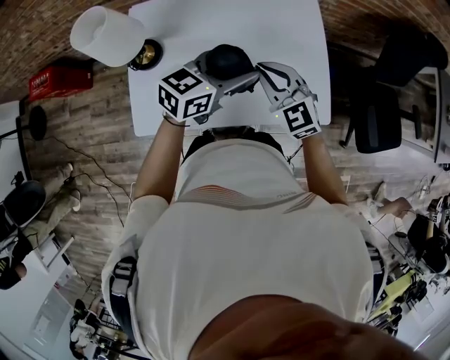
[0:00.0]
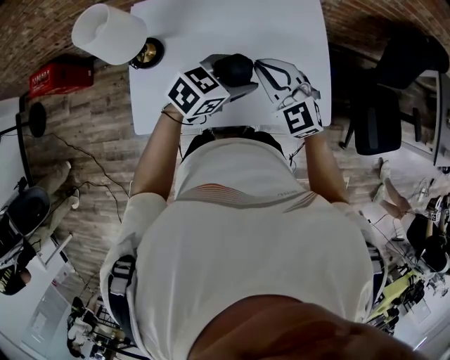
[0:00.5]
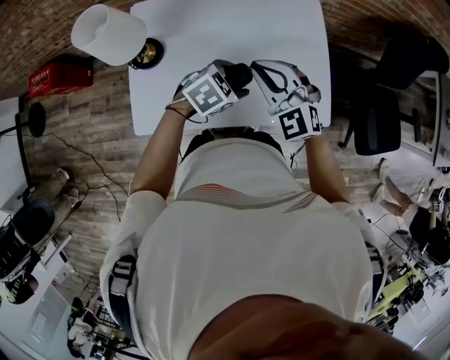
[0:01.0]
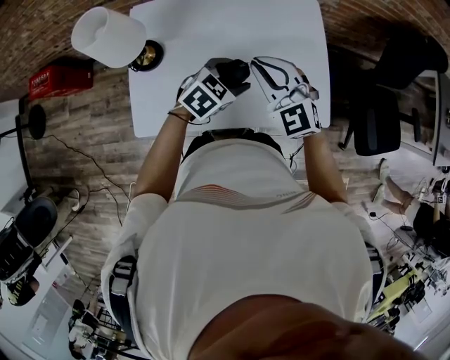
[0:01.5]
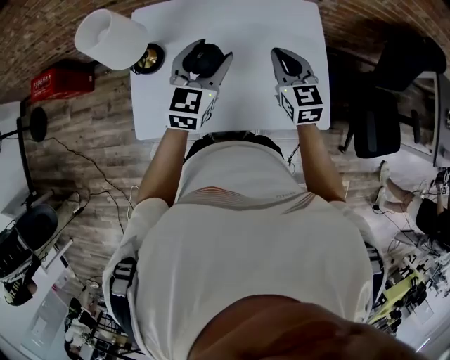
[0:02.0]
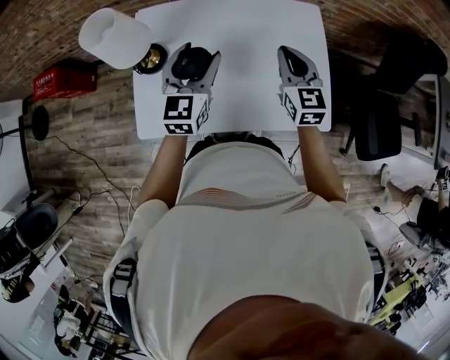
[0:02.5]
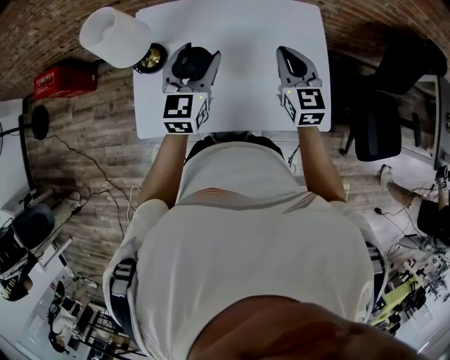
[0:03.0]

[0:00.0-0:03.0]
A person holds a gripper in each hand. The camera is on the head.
0:00.0 to 0:01.5: The left gripper goes roughly 10 cm downward, and changes its angle by roughly 30 degrees.
0:01.5 to 0:03.0: The left gripper heads to the left and upward, covering about 15 cm, and points its fingers about 30 degrees further upward; the right gripper heads to the right and forward, covering roughly 10 cm, and turns by about 30 degrees.

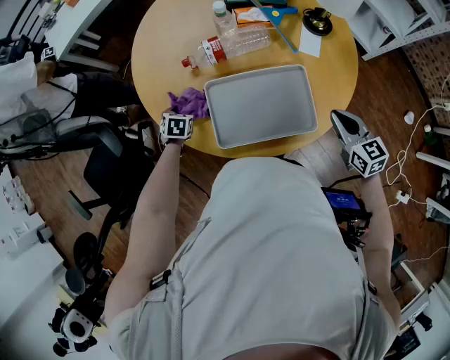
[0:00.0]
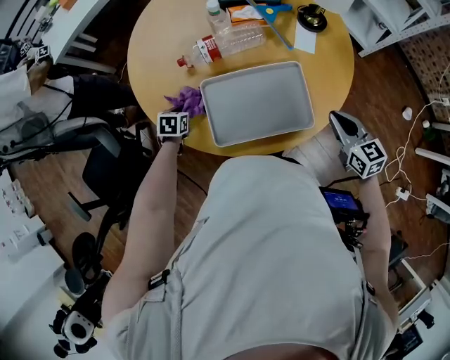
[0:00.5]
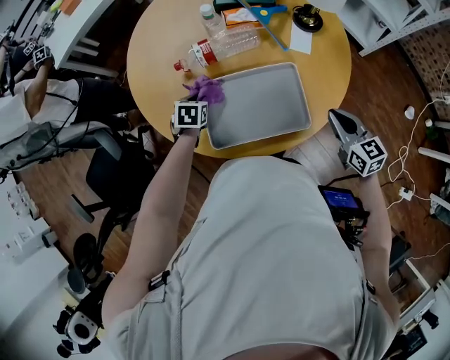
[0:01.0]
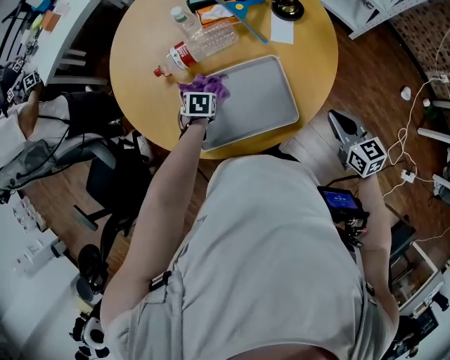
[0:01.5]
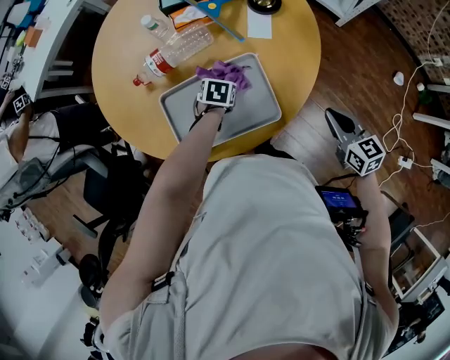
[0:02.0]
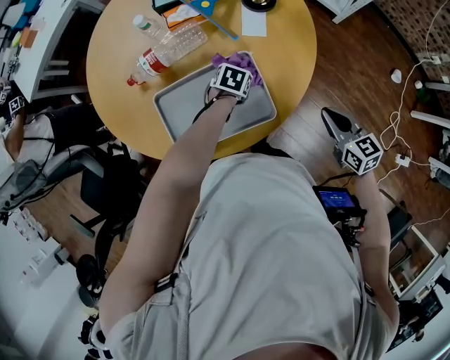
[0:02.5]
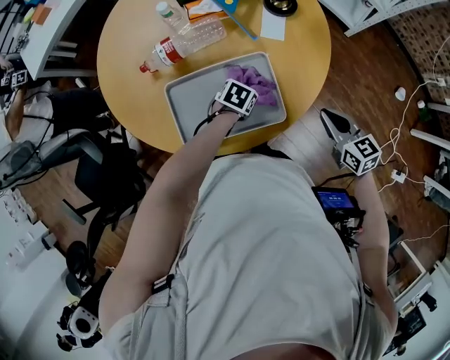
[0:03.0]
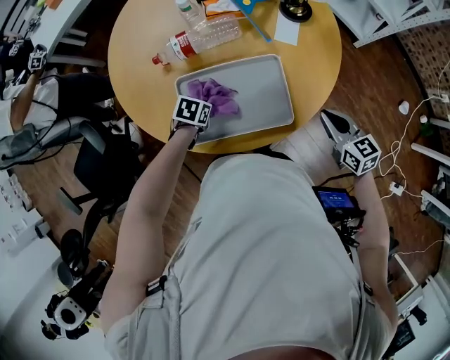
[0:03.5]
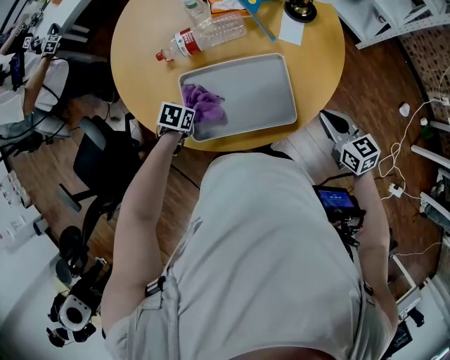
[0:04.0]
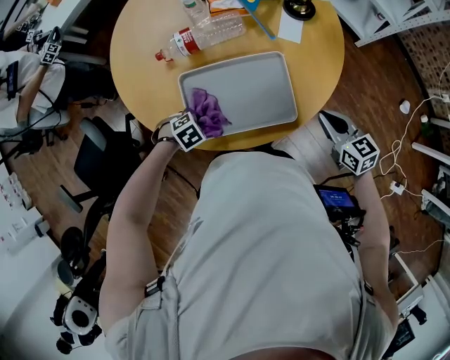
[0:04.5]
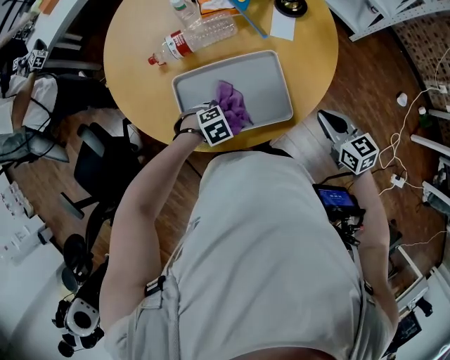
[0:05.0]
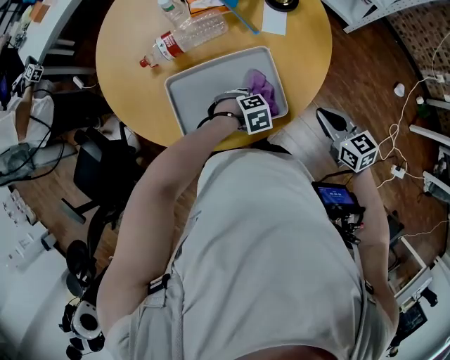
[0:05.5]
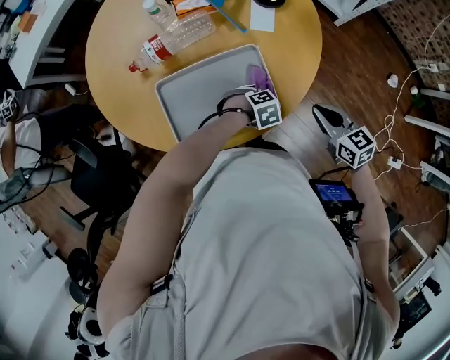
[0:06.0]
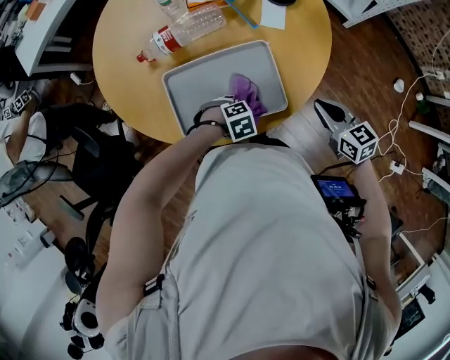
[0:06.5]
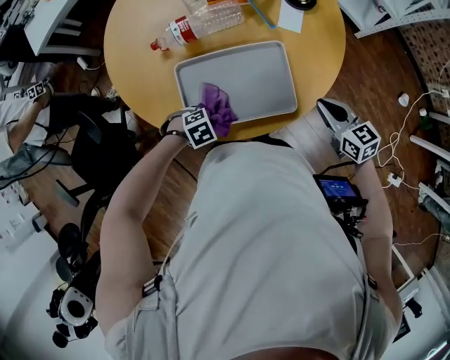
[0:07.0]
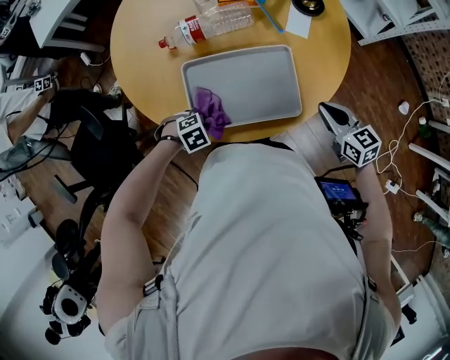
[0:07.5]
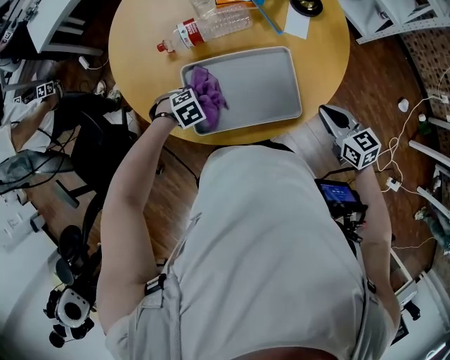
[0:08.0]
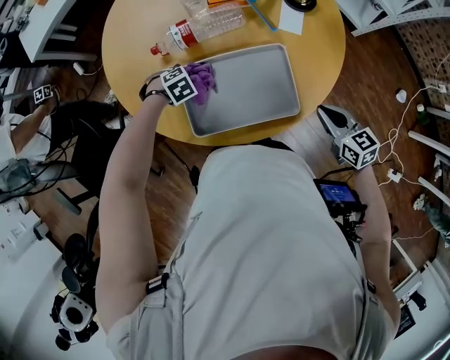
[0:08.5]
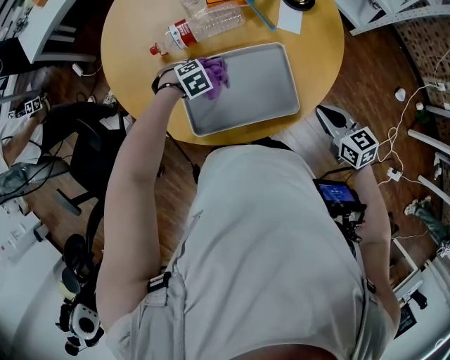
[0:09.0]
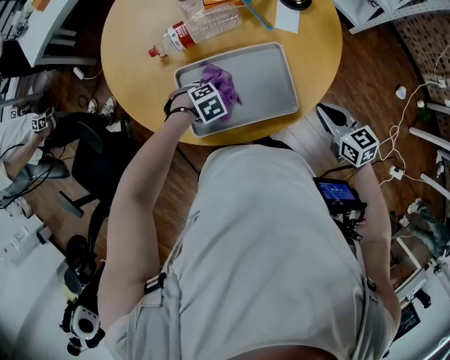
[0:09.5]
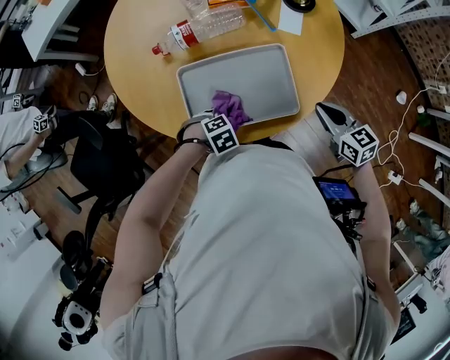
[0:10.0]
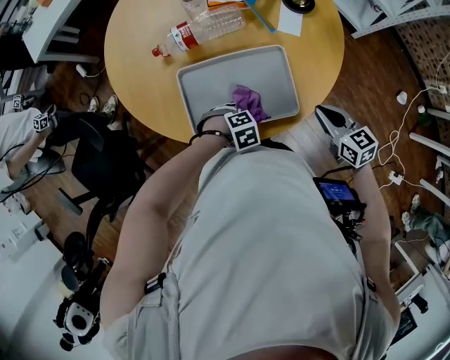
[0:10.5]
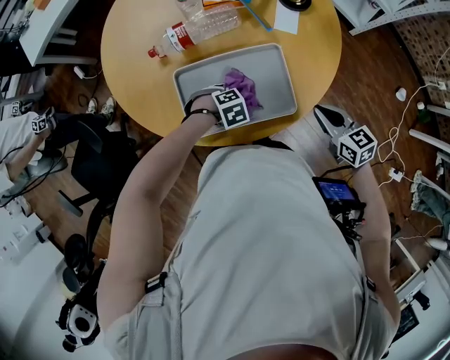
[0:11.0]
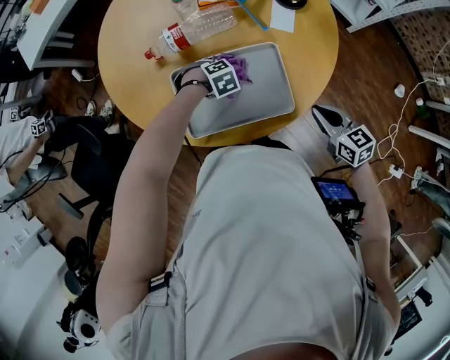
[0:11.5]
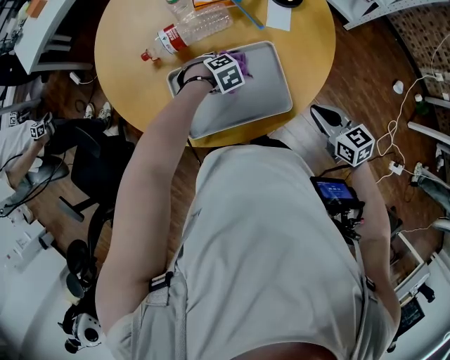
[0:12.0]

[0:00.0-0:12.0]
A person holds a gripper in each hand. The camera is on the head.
0:00.0 to 0:02.0: The right gripper changes place by roughly 15 cm.
0:02.0 to 0:04.0: The right gripper shifts by about 10 cm.
0:06.0 to 0:08.0: The right gripper ends up some 5 cm from where it was.

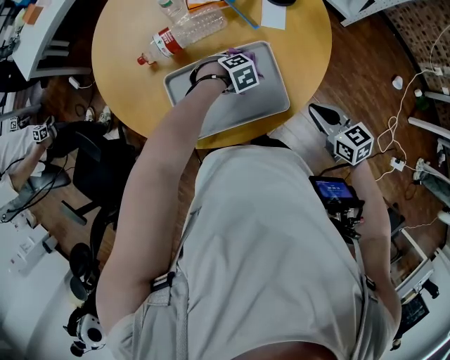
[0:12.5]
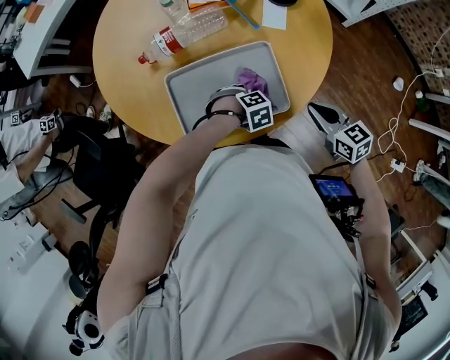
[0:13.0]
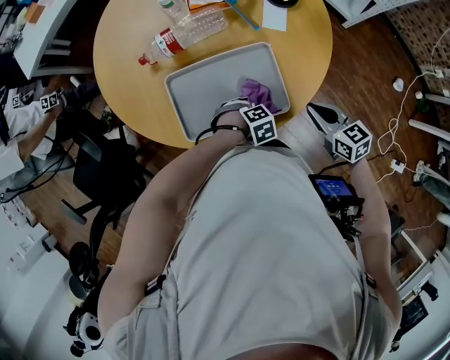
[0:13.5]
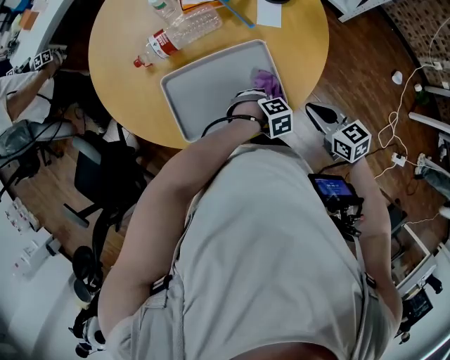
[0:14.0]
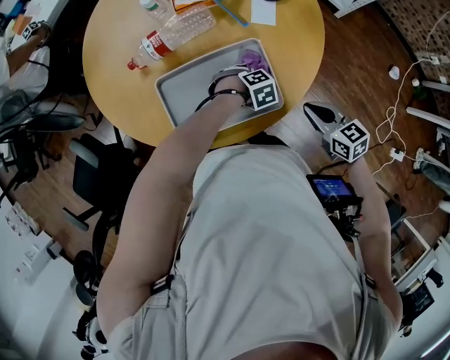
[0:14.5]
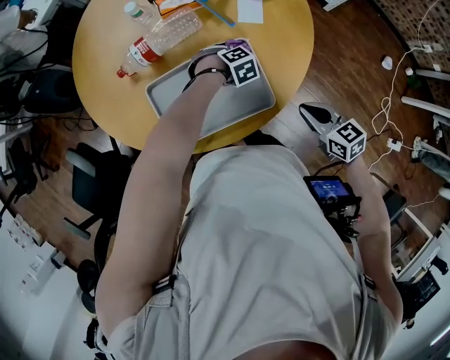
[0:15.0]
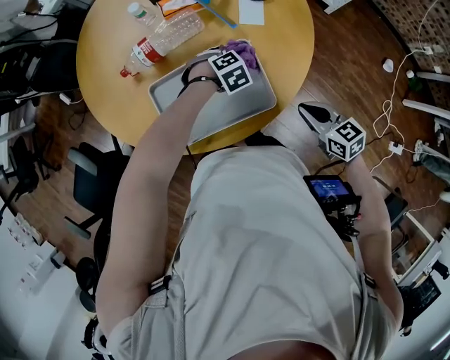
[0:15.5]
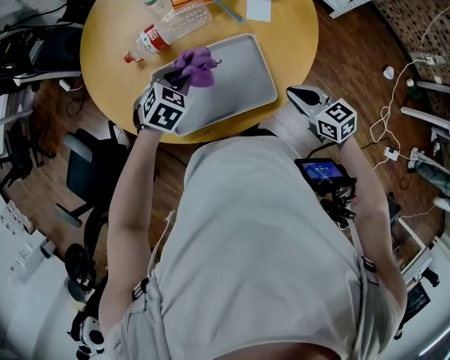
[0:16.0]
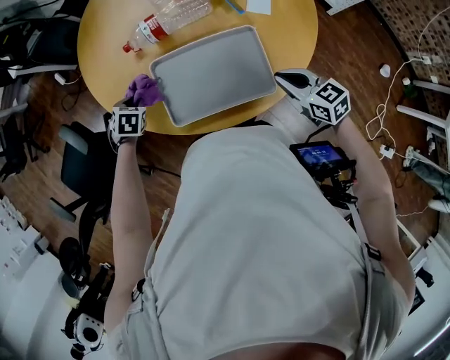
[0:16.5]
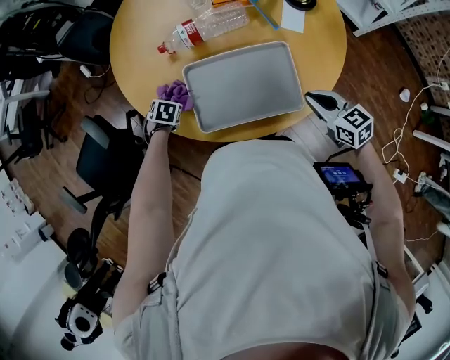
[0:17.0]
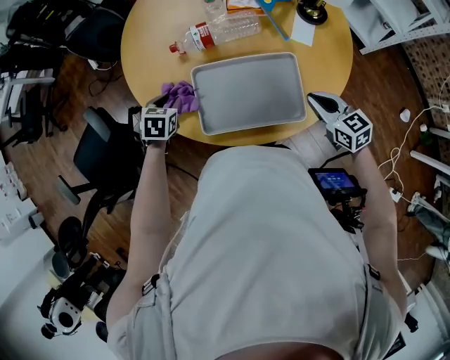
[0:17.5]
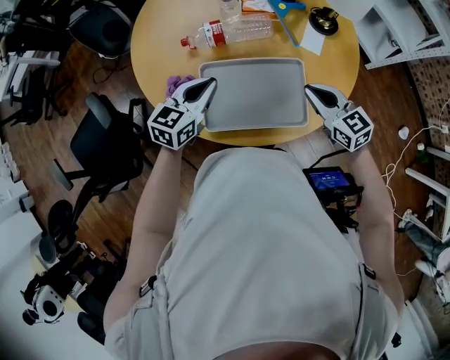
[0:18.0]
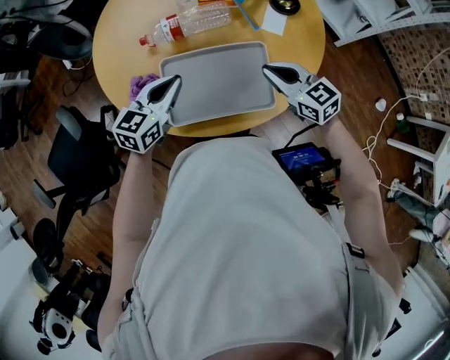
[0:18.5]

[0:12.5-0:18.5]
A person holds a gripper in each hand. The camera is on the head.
0:14.5 to 0:16.5: The right gripper changes place by approximately 10 cm.
0:16.5 to 0:18.5: The right gripper moves some 10 cm.

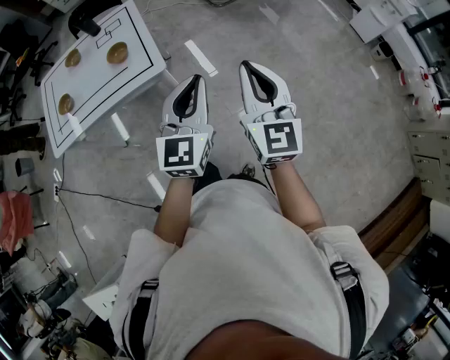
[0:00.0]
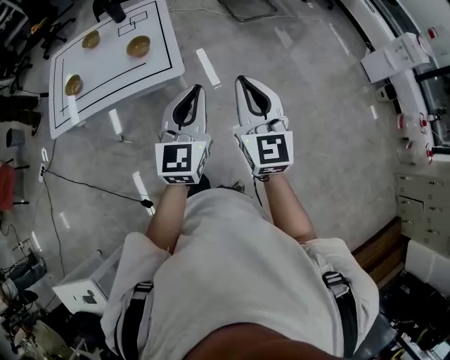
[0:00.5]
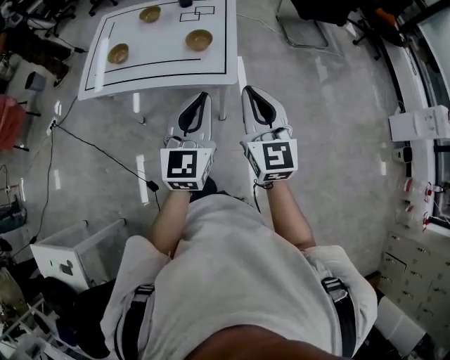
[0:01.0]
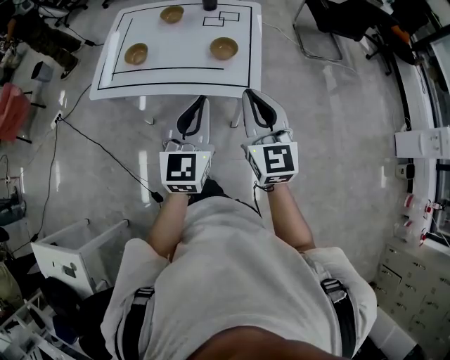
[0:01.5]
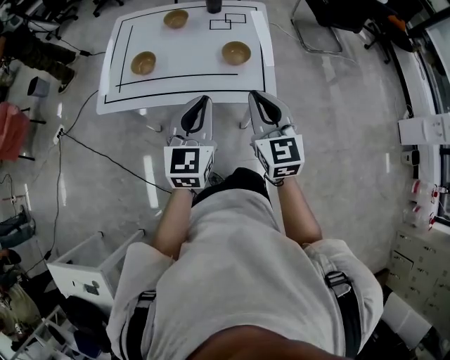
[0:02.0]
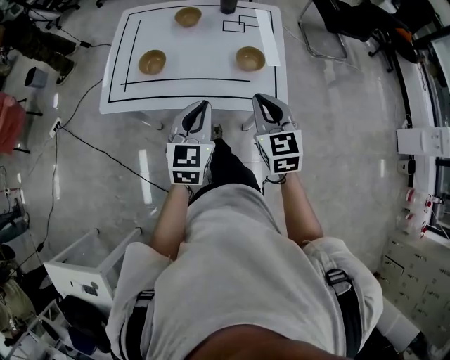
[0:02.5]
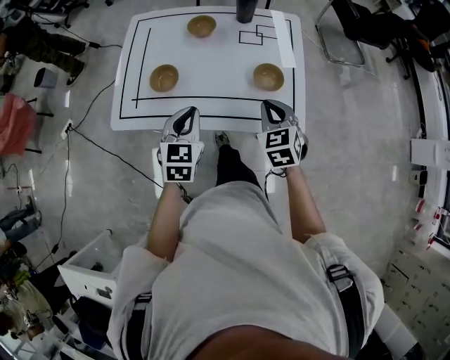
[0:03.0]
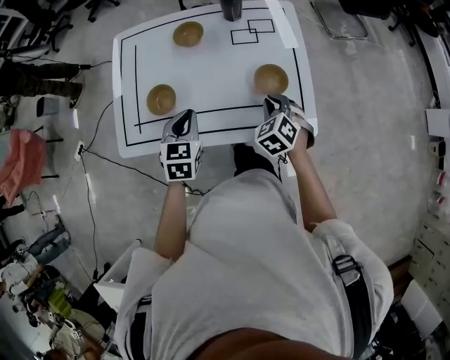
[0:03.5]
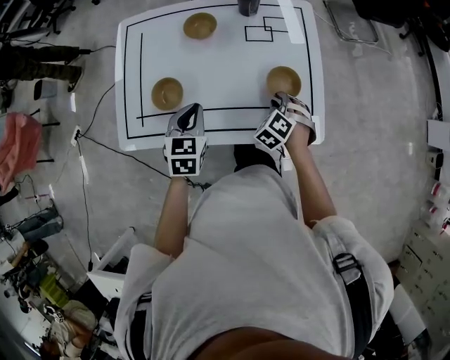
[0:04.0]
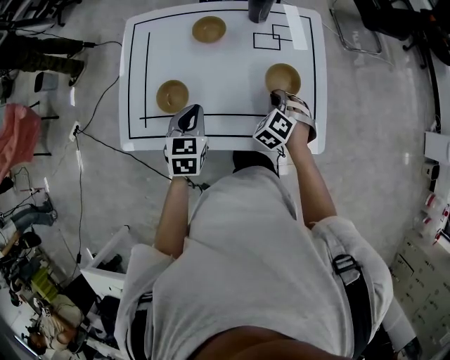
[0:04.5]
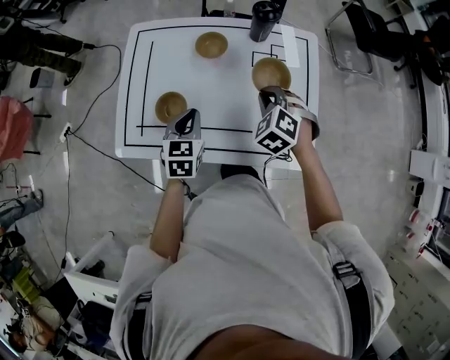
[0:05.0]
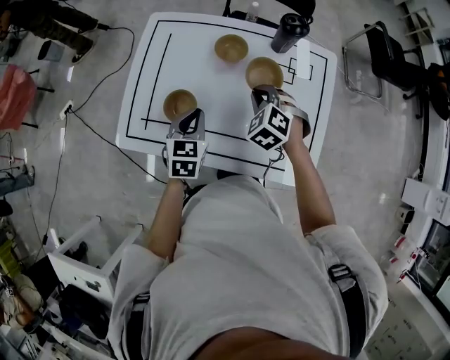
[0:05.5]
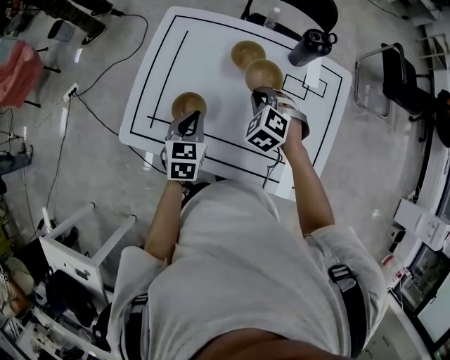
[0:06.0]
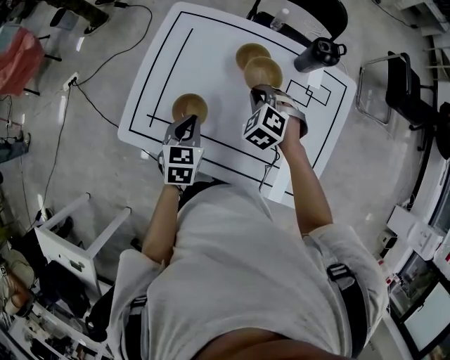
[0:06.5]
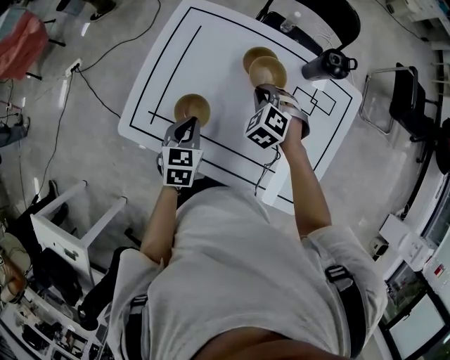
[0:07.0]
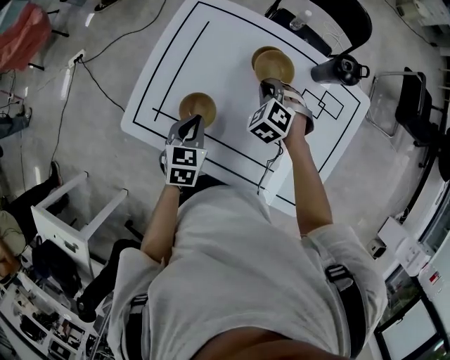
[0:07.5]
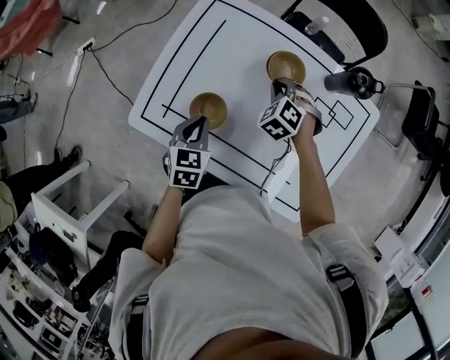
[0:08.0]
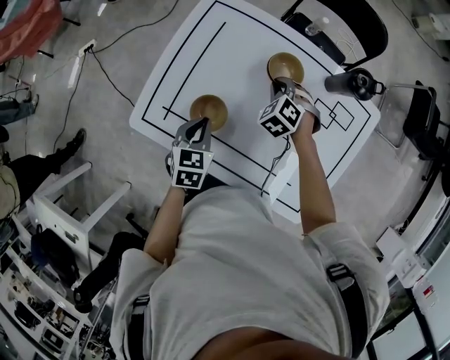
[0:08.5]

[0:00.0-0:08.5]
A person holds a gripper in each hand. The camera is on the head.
0:00.0 to 0:02.0: The two grippers travel together, about 40 cm. The right gripper changes its angle by about 30 degrees. Meanwhile the left gripper changes its angle by about 20 degrees.
0:02.0 to 0:04.0: The left gripper travels forward, downward and to the left by approximately 35 cm, and turns by roughly 30 degrees; the right gripper heads downward and forward, covering roughly 40 cm, tilts its fingers some 50 degrees downward, and opens up.
0:04.0 to 0:06.5: The right gripper changes place by some 30 cm, and changes its angle by some 30 degrees. The left gripper ends up approximately 15 cm from where it was, and turns by approximately 20 degrees.
0:06.5 to 0:08.5: The right gripper moves forward and downward, roughly 10 cm.
